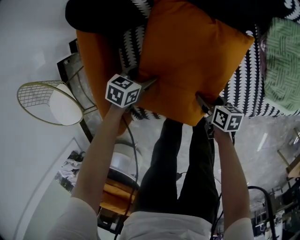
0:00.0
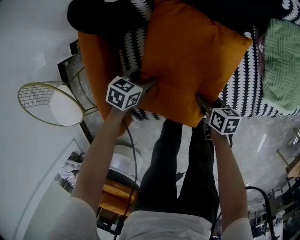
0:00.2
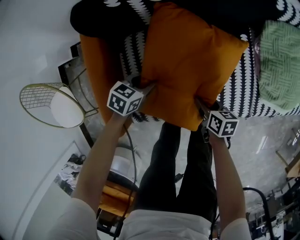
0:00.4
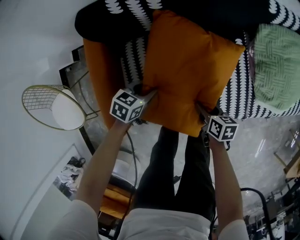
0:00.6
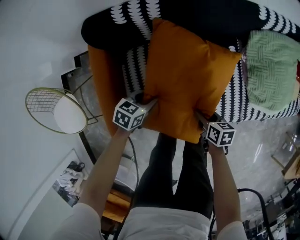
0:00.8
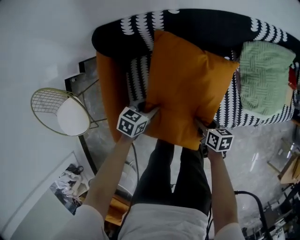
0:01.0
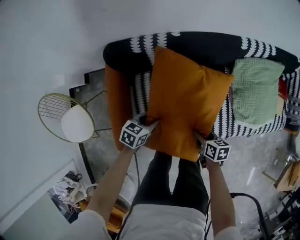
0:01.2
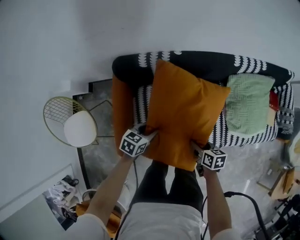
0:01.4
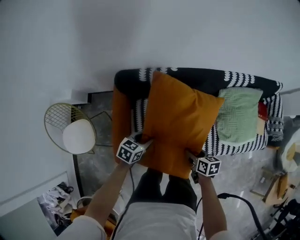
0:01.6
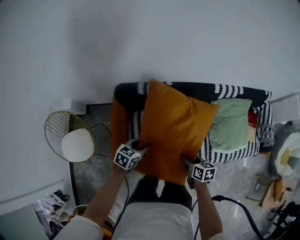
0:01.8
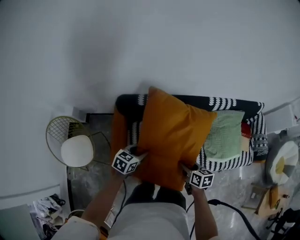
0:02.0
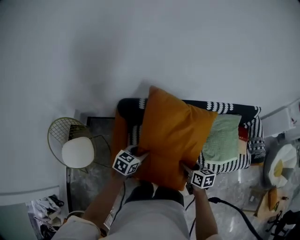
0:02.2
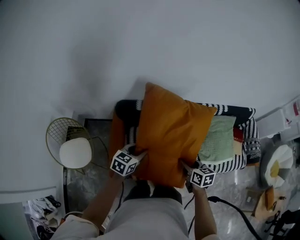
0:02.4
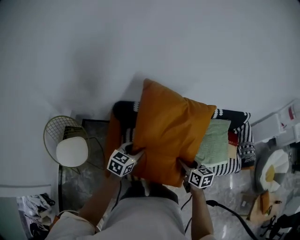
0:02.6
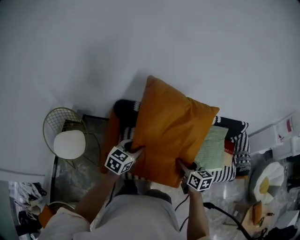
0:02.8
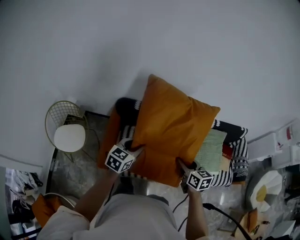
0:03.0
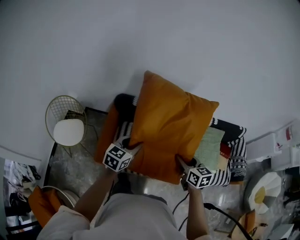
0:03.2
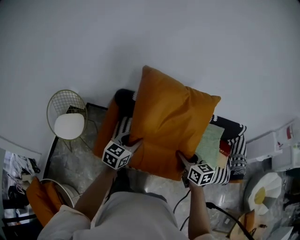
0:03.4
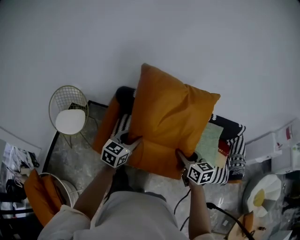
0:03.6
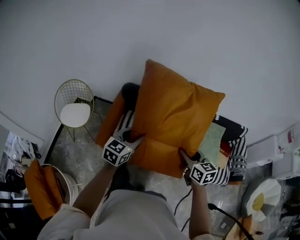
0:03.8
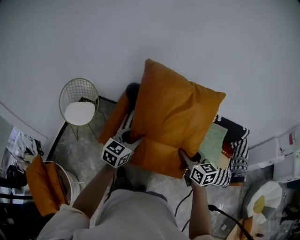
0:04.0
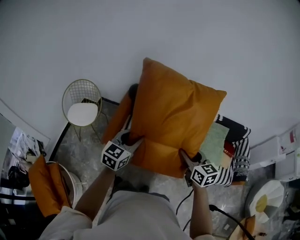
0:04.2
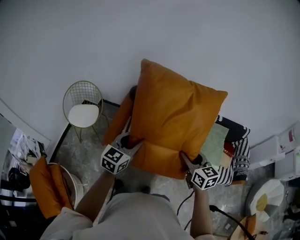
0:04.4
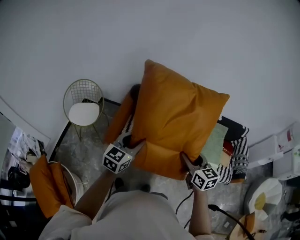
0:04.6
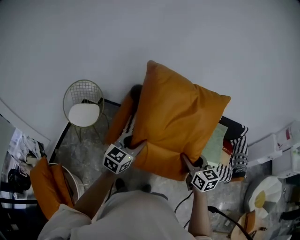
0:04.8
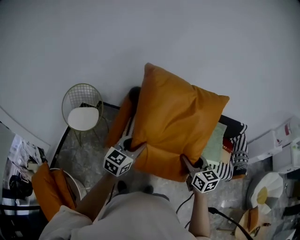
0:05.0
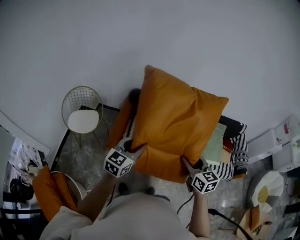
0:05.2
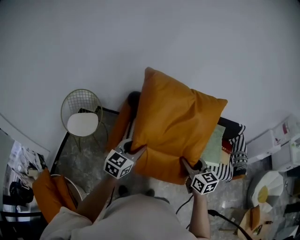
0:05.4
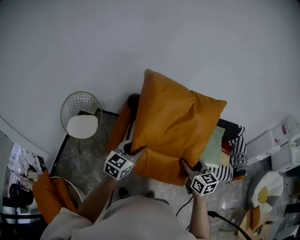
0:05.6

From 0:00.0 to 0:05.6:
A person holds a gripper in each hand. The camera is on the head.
From 0:00.0 to 0:01.4: Both grippers travel together upward, some 35 cm. The left gripper closes its fingers.
From 0:01.4 to 0:02.8: The two grippers go roughly 35 cm upward. The left gripper swivels some 30 degrees. The right gripper changes its angle by about 30 degrees.
From 0:02.8 to 0:04.2: The right gripper goes about 25 cm backward, upward and to the right, and swivels roughly 20 degrees. Meanwhile the left gripper goes roughly 30 cm backward, and turns by approximately 20 degrees.
From 0:04.2 to 0:05.6: The right gripper shifts some 10 cm to the left and backward. The left gripper shifts roughly 10 cm to the left.

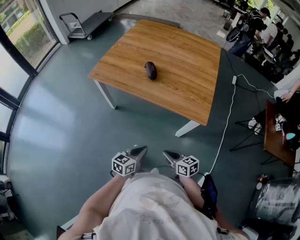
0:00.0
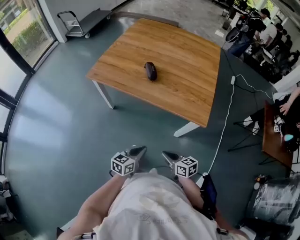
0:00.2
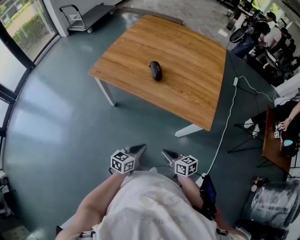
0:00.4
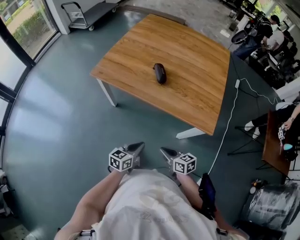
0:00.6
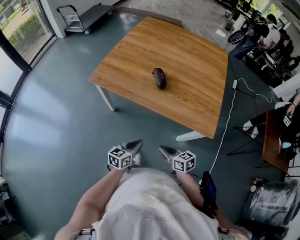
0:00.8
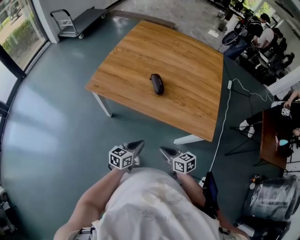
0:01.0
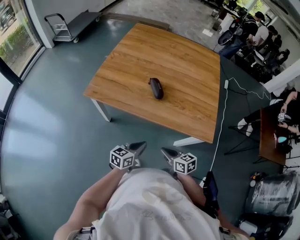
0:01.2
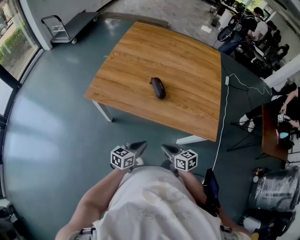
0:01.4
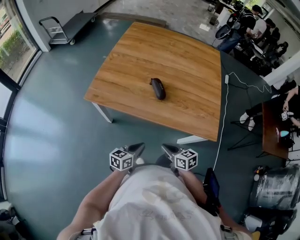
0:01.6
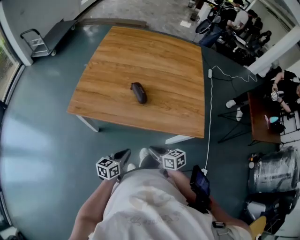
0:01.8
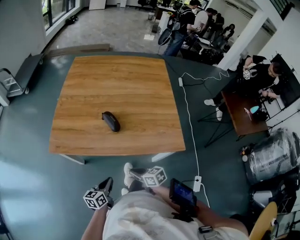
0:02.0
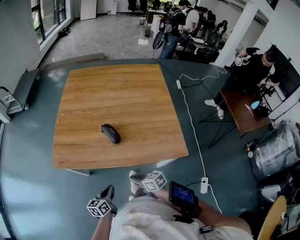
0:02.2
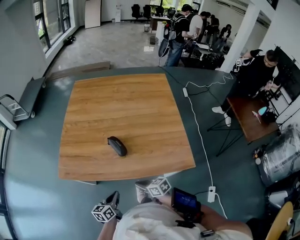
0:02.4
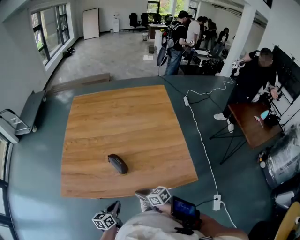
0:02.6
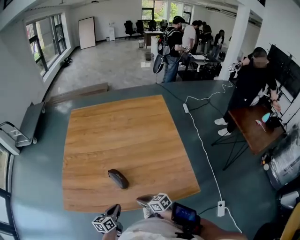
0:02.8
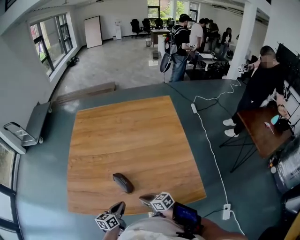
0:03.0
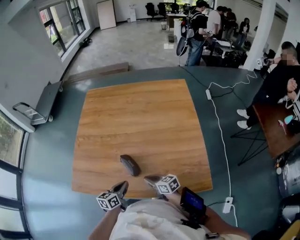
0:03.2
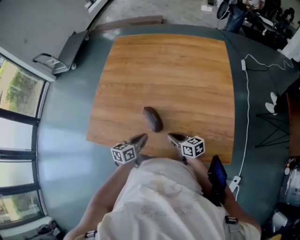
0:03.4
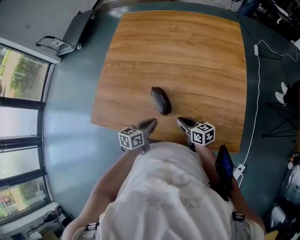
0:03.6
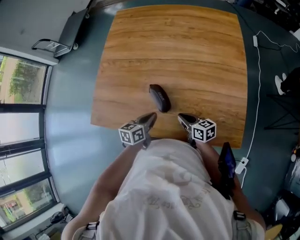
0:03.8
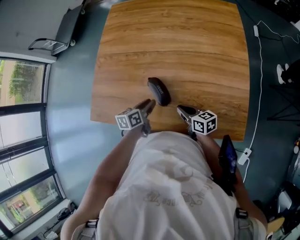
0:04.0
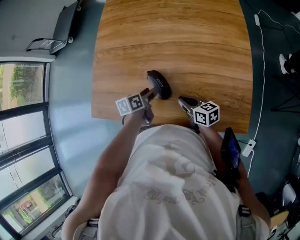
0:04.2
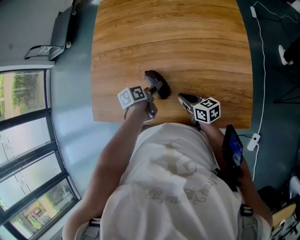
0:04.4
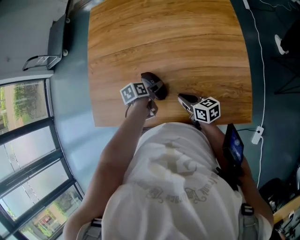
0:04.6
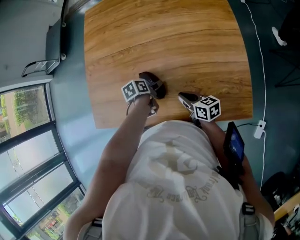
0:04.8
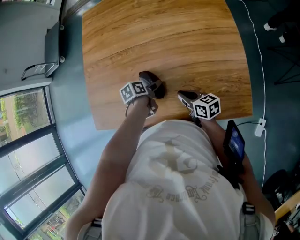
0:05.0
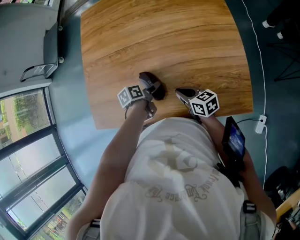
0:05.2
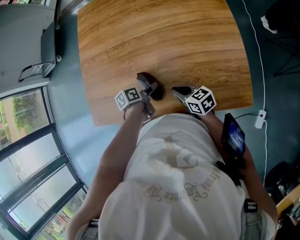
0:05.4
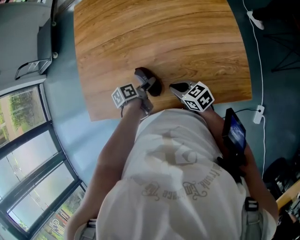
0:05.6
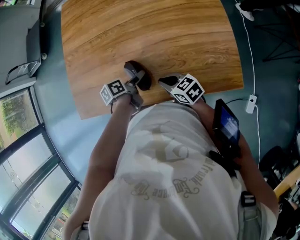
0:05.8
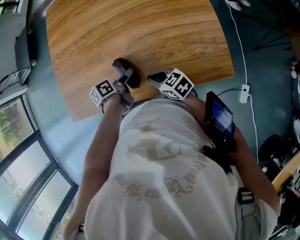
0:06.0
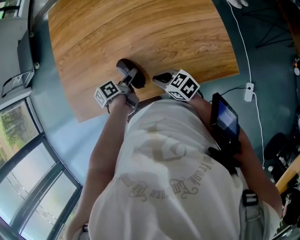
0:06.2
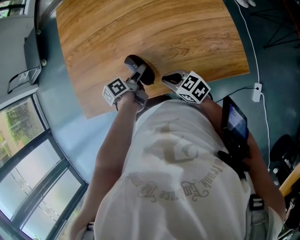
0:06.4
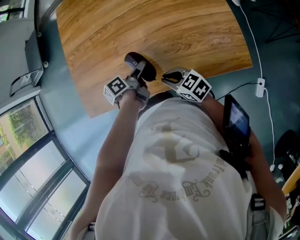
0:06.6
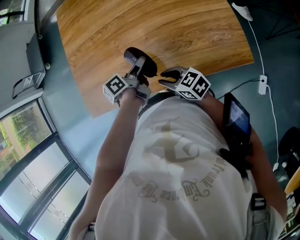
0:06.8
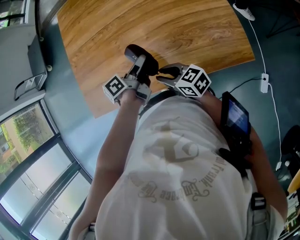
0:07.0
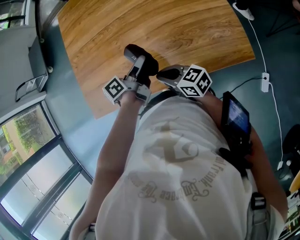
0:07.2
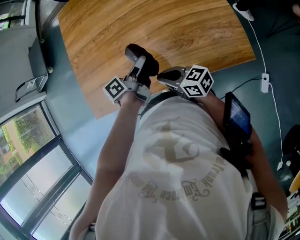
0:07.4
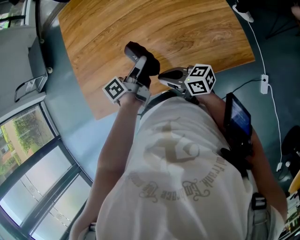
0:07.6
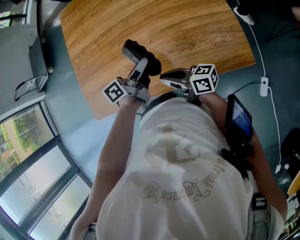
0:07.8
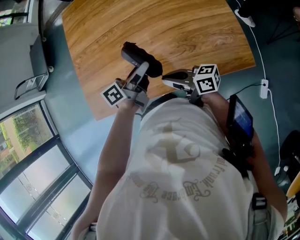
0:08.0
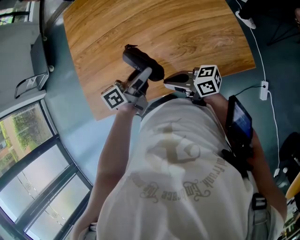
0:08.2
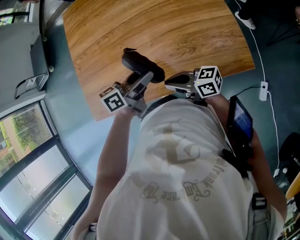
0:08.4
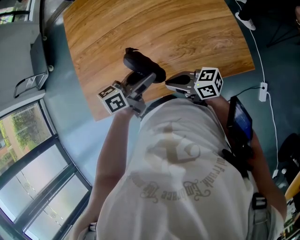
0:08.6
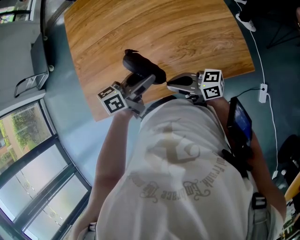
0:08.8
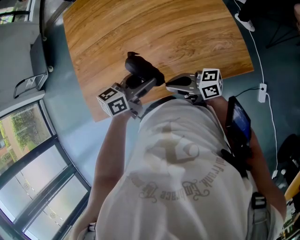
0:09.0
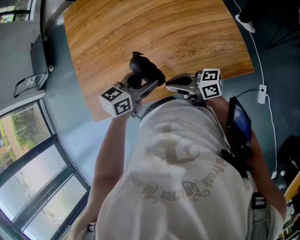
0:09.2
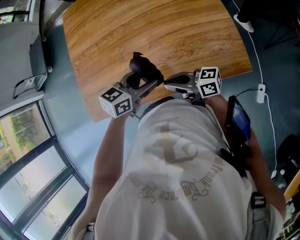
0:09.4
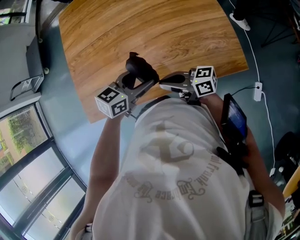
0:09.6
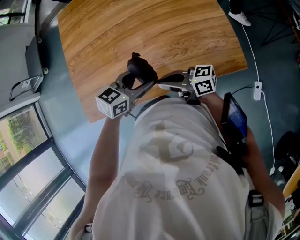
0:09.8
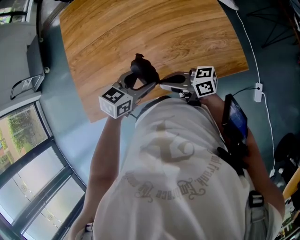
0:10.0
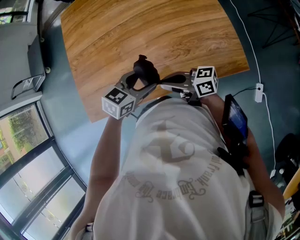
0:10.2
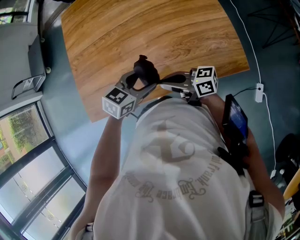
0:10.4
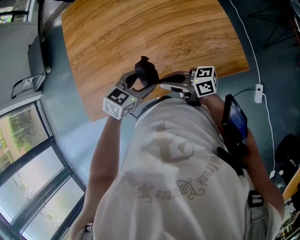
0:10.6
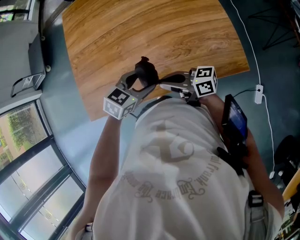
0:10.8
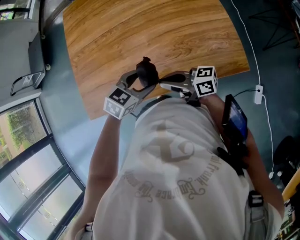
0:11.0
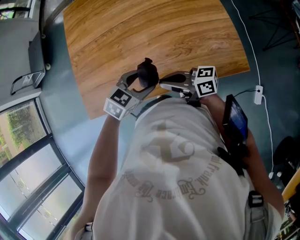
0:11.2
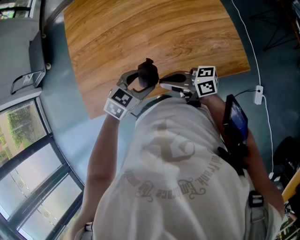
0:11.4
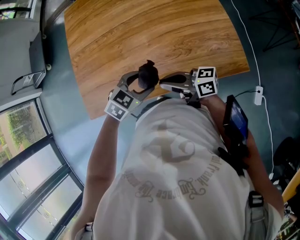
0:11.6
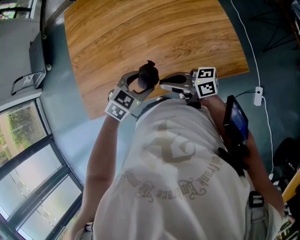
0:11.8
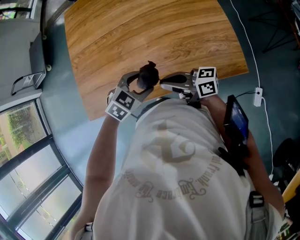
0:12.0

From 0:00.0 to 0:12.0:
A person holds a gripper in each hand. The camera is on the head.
From 0:00.0 to 0:01.6: The grippers both shift forward and to the left by approximately 25 cm.
From 0:01.6 to 0:03.0: Both grippers move forward, approximately 25 cm.
From 0:03.0 to 0:04.4: The left gripper shifts some 15 cm forward and downward, turns by roughly 30 degrees, and opens up; the right gripper moves forward, roughly 5 cm.
From 0:04.4 to 0:06.0: The two grippers go some 5 cm backward.
From 0:06.0 to 0:07.6: The right gripper shifts about 5 cm upward, turns by approximately 30 degrees, and opens and closes again; the left gripper is displaced upward by roughly 10 cm, and tilts its fingers some 30 degrees upward.
From 0:07.6 to 0:09.0: The left gripper ends up some 5 cm from where it was, and turns by roughly 50 degrees.
From 0:09.0 to 0:10.4: The left gripper rotates some 30 degrees.
From 0:10.4 to 0:12.0: The left gripper changes its angle by roughly 20 degrees.

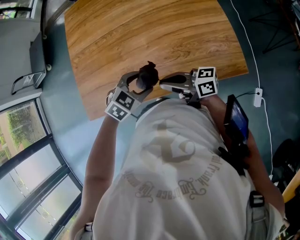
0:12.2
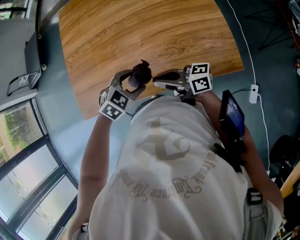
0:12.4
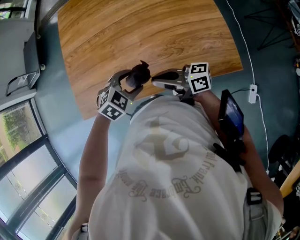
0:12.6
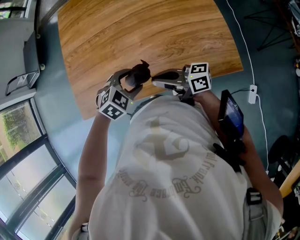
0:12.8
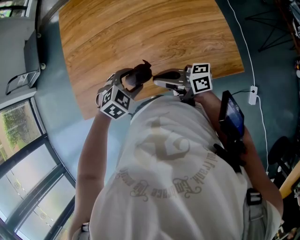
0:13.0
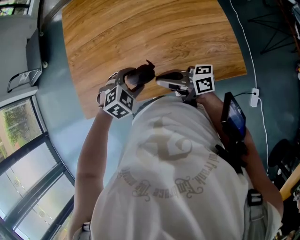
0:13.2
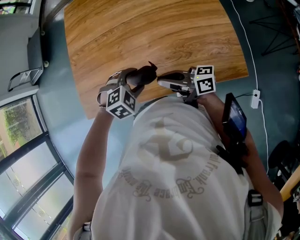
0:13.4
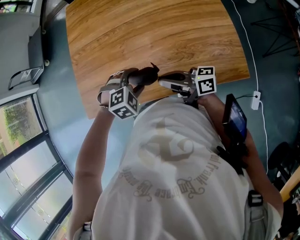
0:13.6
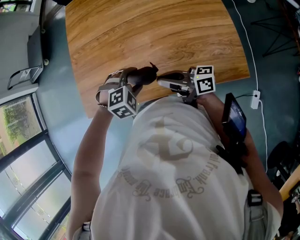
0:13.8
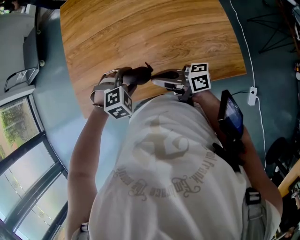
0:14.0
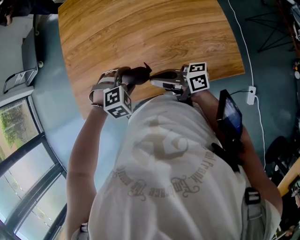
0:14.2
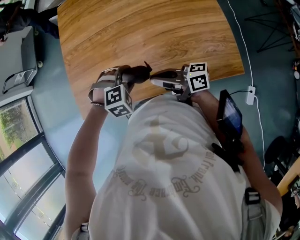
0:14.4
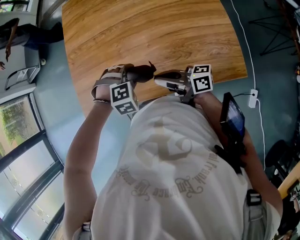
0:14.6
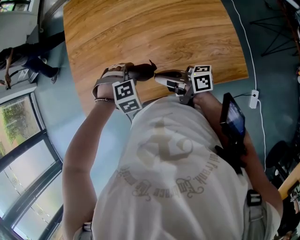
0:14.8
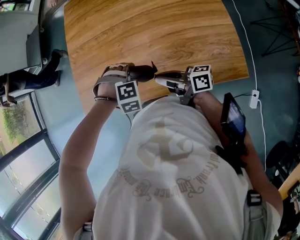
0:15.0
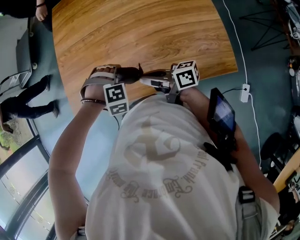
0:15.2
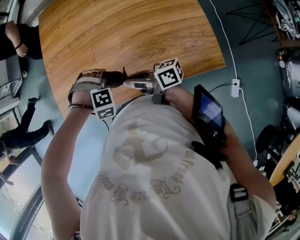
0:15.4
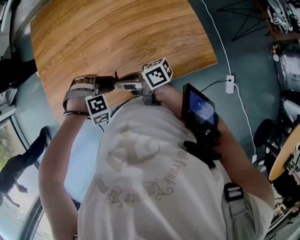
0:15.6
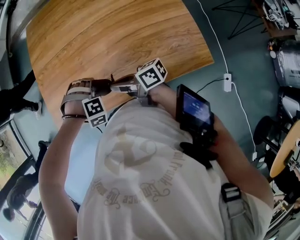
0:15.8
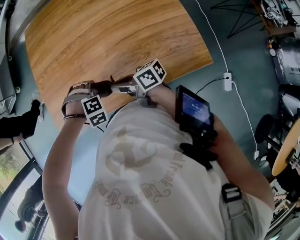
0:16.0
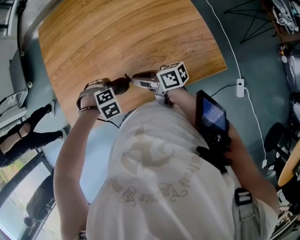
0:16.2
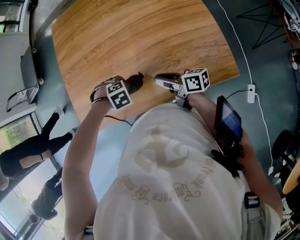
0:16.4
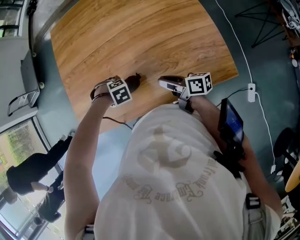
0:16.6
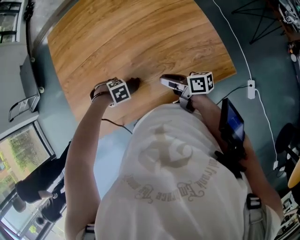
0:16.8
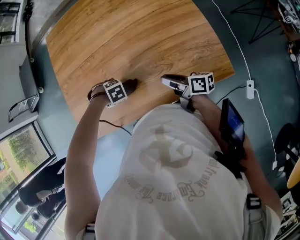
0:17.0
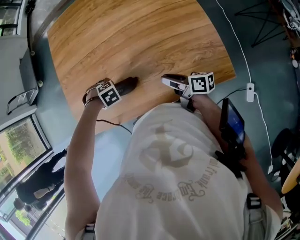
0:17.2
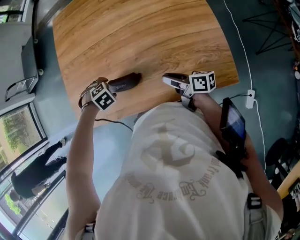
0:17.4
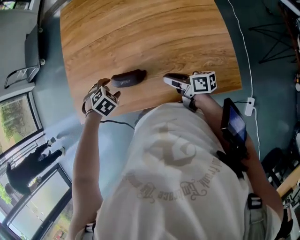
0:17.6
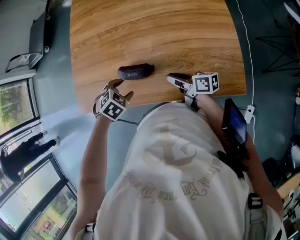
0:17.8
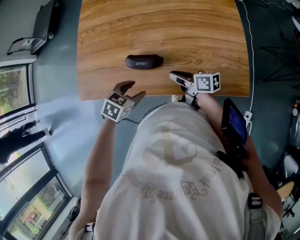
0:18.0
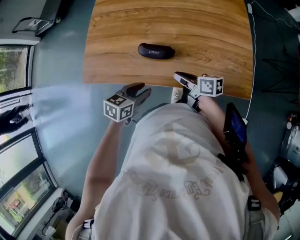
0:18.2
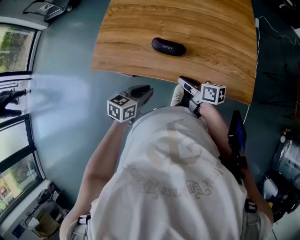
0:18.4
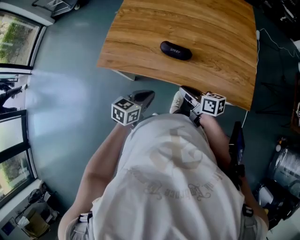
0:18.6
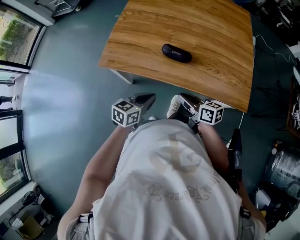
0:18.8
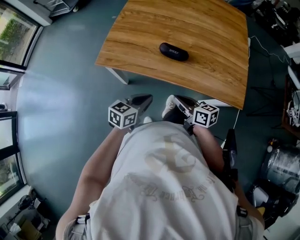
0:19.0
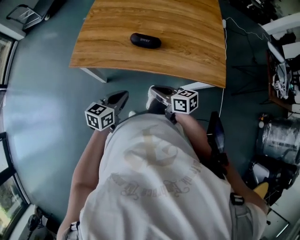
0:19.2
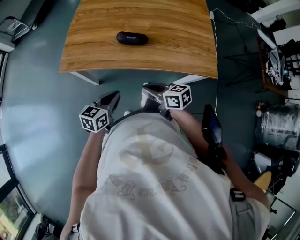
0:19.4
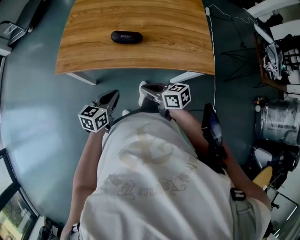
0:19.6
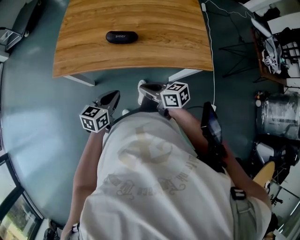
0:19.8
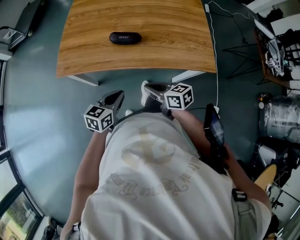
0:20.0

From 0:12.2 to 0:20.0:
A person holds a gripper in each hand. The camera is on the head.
From 0:12.2 to 0:13.8: The left gripper swivels about 30 degrees.
From 0:13.8 to 0:15.4: The left gripper turns by roughly 40 degrees.
From 0:15.4 to 0:16.8: The left gripper travels downward by about 10 cm, and turns by about 40 degrees; the right gripper ends up roughly 15 cm from where it was, and swivels roughly 30 degrees.
From 0:16.8 to 0:18.4: The left gripper ends up approximately 25 cm from where it was, angles its fingers upward, by roughly 40 degrees, and closes its fingers; the right gripper moves some 15 cm, and rotates roughly 30 degrees.
From 0:18.4 to 0:20.0: The right gripper moves backward, about 15 cm. The left gripper shifts approximately 10 cm backward.
